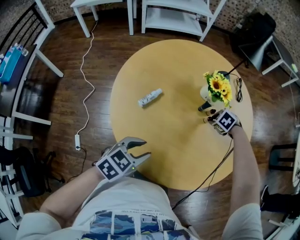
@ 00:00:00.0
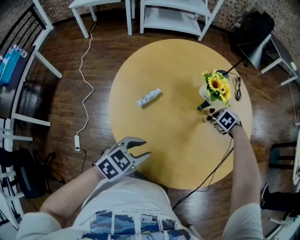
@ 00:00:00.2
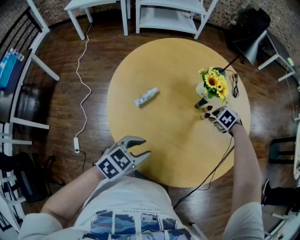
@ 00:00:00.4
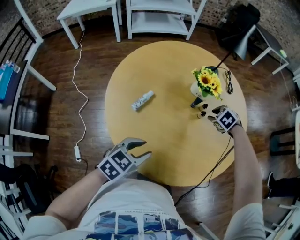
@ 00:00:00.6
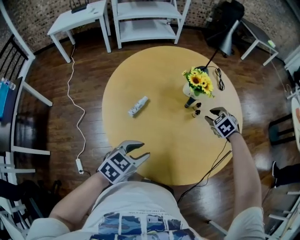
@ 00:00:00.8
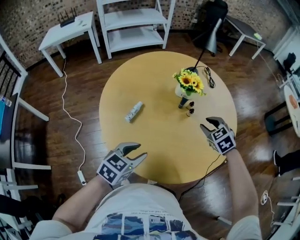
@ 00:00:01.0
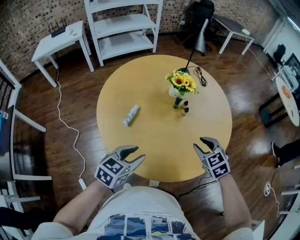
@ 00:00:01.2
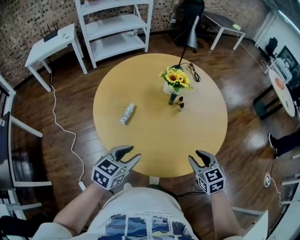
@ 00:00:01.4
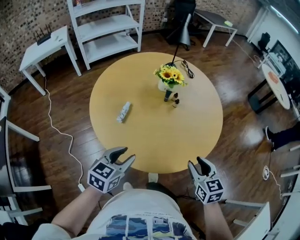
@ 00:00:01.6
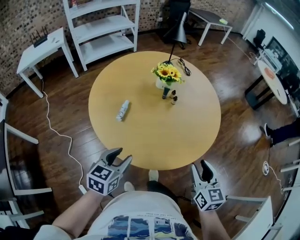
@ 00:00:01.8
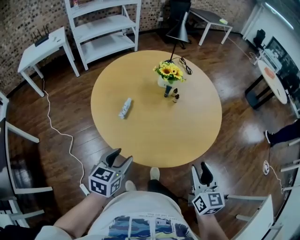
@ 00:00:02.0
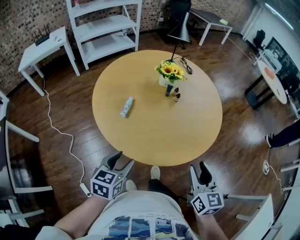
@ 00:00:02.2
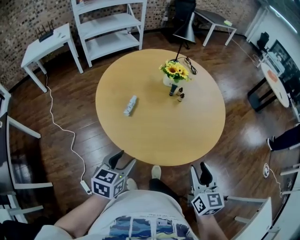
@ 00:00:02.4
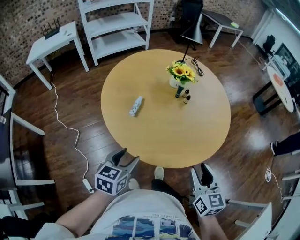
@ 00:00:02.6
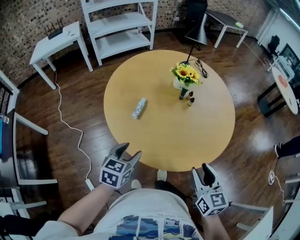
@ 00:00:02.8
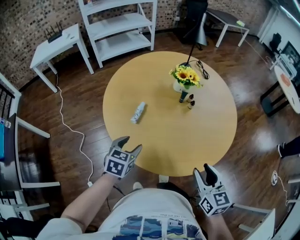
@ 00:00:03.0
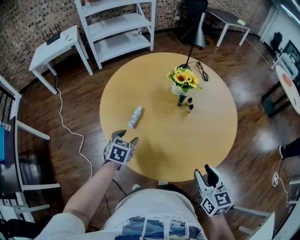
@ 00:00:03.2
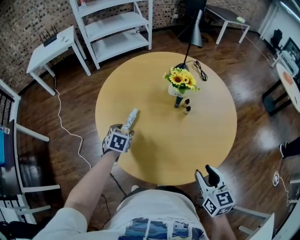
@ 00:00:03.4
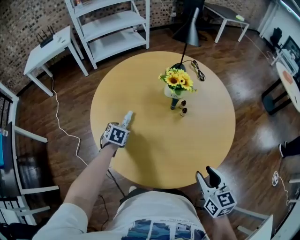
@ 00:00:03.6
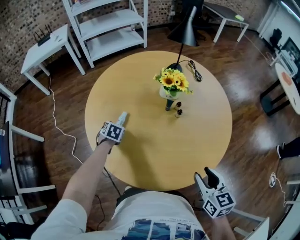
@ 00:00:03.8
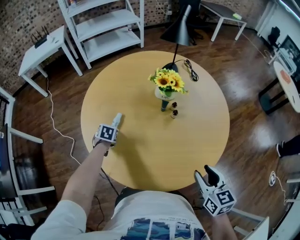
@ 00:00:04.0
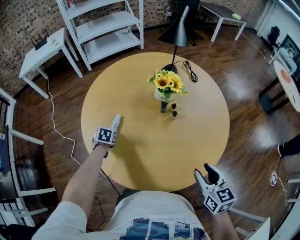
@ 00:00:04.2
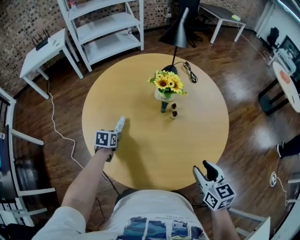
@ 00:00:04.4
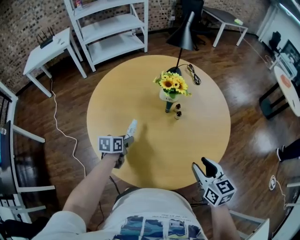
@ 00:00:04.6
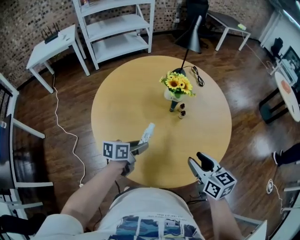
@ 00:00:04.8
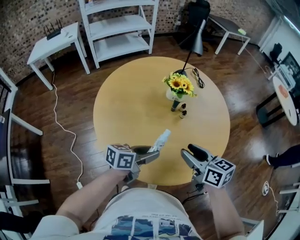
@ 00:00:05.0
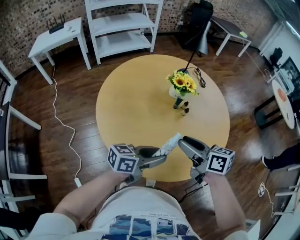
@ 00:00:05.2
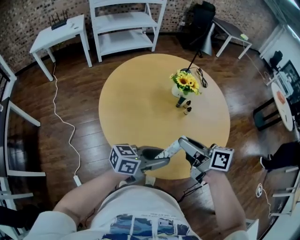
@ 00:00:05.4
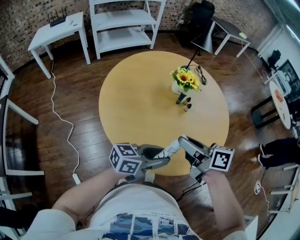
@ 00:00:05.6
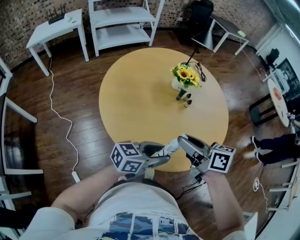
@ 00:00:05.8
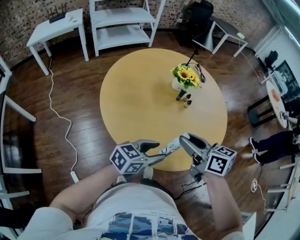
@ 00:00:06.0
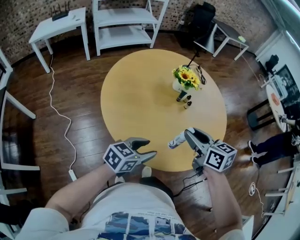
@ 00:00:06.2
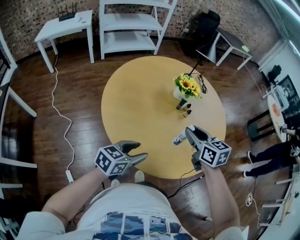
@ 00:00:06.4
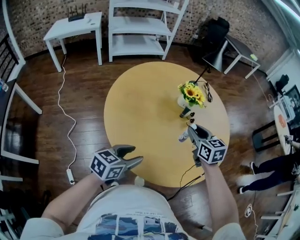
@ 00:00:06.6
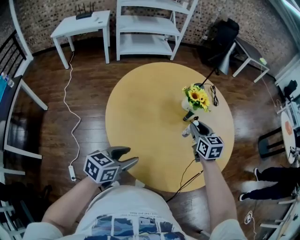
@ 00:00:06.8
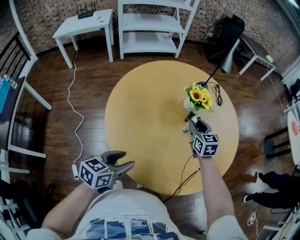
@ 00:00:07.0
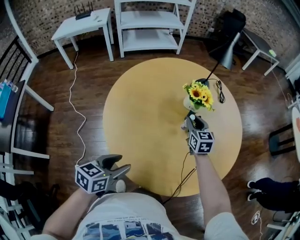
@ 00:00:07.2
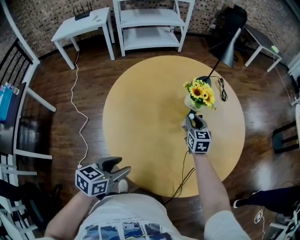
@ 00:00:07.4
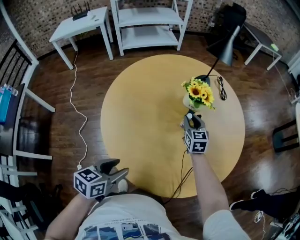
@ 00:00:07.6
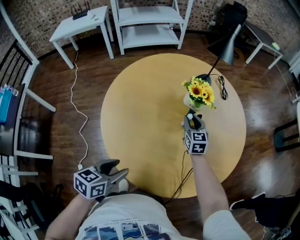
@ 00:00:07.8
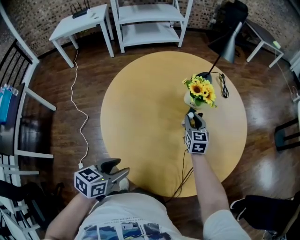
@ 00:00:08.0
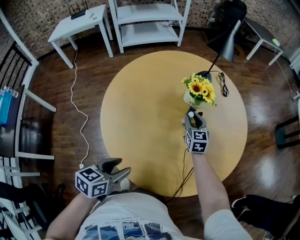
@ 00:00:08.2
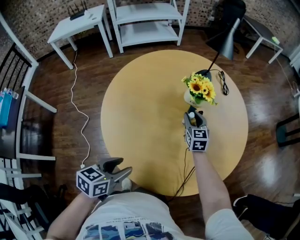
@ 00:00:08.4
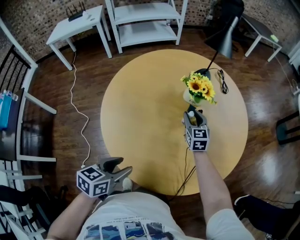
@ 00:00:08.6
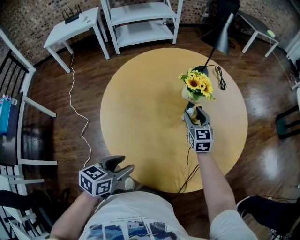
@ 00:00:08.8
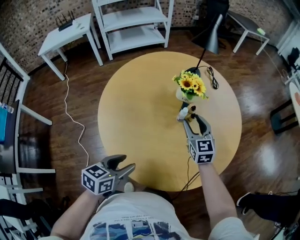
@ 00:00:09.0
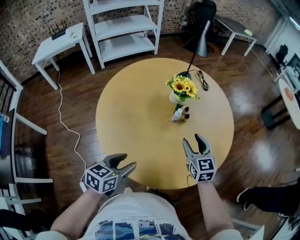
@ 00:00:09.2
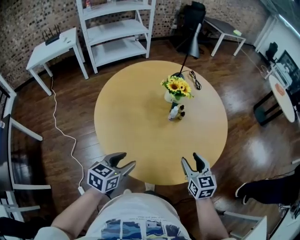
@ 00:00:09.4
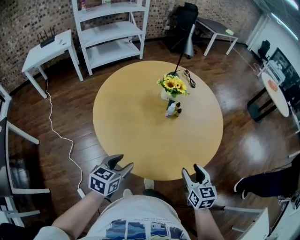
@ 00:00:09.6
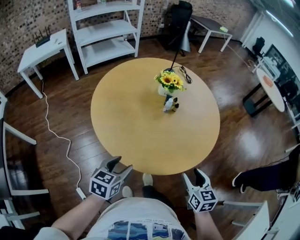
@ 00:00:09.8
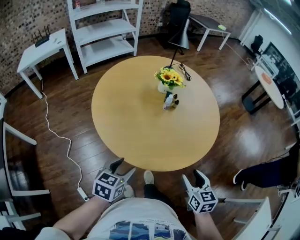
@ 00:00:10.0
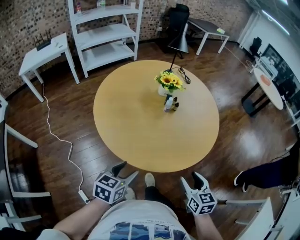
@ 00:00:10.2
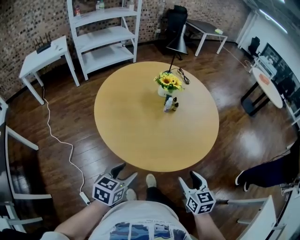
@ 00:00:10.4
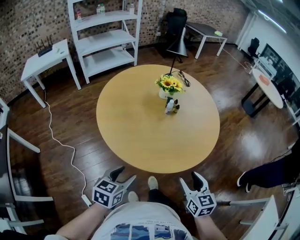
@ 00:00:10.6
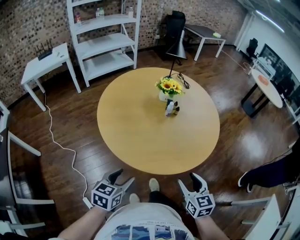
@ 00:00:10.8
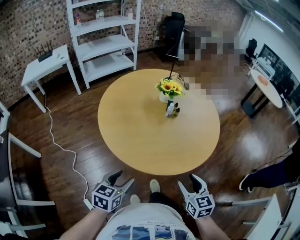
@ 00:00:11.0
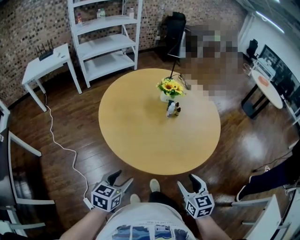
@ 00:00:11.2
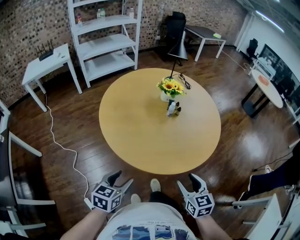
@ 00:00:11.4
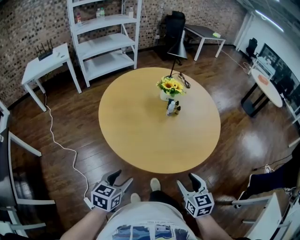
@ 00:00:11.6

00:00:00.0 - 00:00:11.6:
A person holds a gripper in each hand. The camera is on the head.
00:00:00.0 - 00:00:01.4: The left gripper travels upward by about 5 cm. Meanwhile the right gripper ends up some 35 cm from where it was, and points its fingers approximately 40 degrees further upward.
00:00:01.4 - 00:00:02.8: The left gripper goes some 5 cm to the left, while the right gripper goes about 10 cm backward and upward, and turns by about 30 degrees.
00:00:02.8 - 00:00:04.4: The left gripper goes some 30 cm forward and downward, and changes its angle by some 20 degrees; the right gripper moves to the right and forward, about 20 cm.
00:00:04.4 - 00:00:05.8: The left gripper travels backward, upward and to the right by approximately 35 cm, and tips its fingers upward by about 50 degrees, while the right gripper shifts about 25 cm to the left, and rotates some 40 degrees.
00:00:05.8 - 00:00:07.2: The right gripper travels forward and downward by roughly 35 cm, and rotates some 40 degrees. The left gripper is displaced to the left by roughly 10 cm, and swivels approximately 40 degrees.
00:00:07.2 - 00:00:08.8: The right gripper opens.
00:00:08.8 - 00:00:10.2: The right gripper moves backward, about 50 cm, and turns by roughly 30 degrees. The left gripper is displaced backward by some 15 cm.
00:00:10.2 - 00:00:11.6: The right gripper goes roughly 5 cm to the left. The left gripper is displaced to the left and backward by about 5 cm.

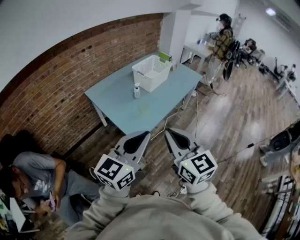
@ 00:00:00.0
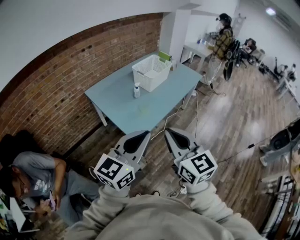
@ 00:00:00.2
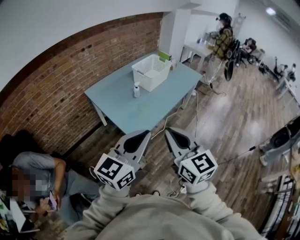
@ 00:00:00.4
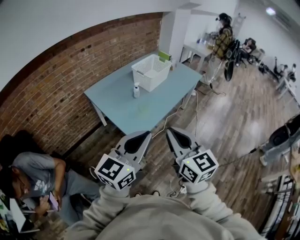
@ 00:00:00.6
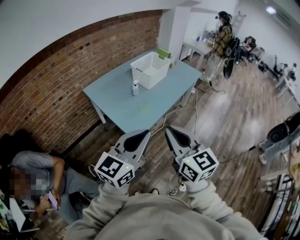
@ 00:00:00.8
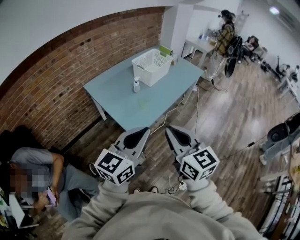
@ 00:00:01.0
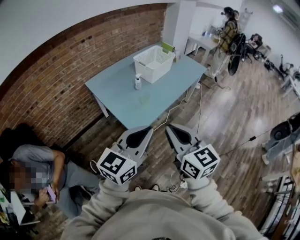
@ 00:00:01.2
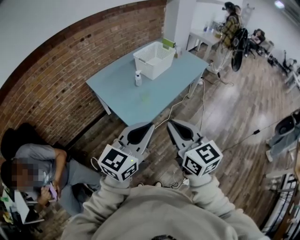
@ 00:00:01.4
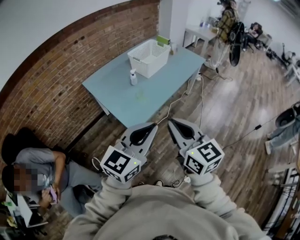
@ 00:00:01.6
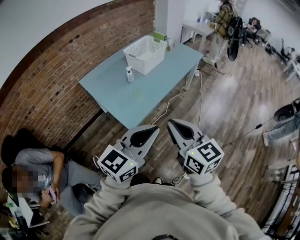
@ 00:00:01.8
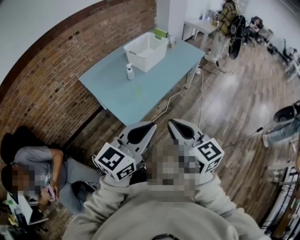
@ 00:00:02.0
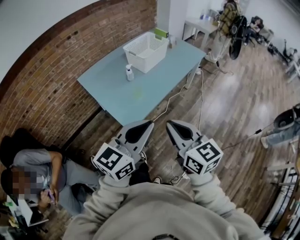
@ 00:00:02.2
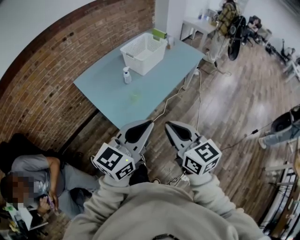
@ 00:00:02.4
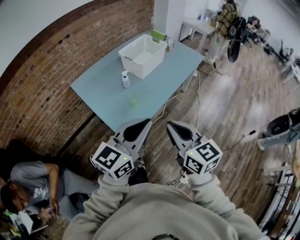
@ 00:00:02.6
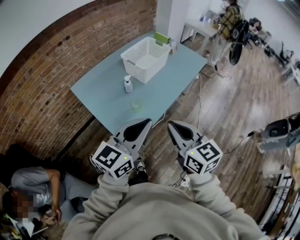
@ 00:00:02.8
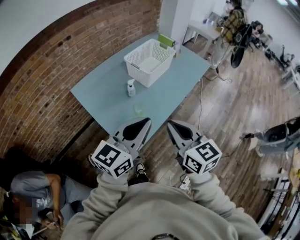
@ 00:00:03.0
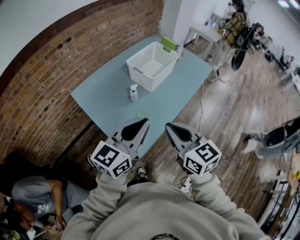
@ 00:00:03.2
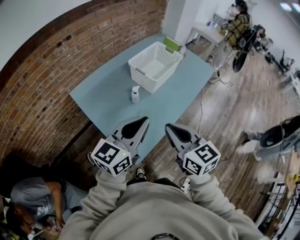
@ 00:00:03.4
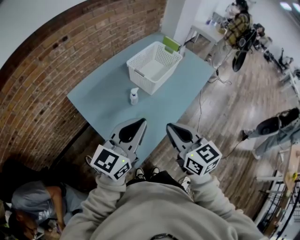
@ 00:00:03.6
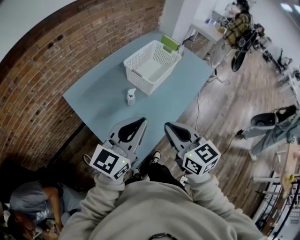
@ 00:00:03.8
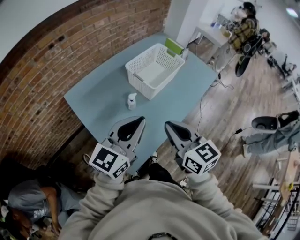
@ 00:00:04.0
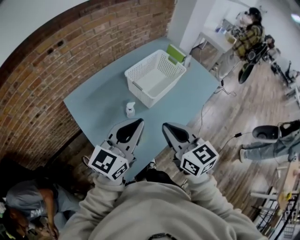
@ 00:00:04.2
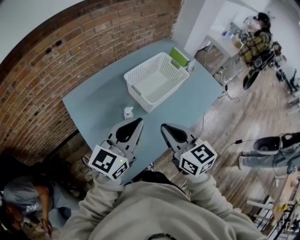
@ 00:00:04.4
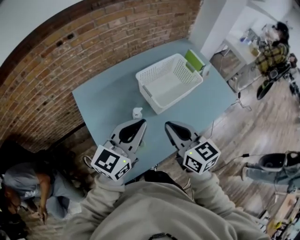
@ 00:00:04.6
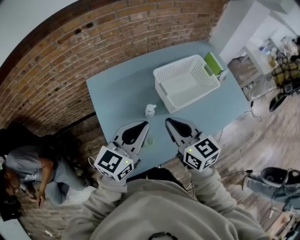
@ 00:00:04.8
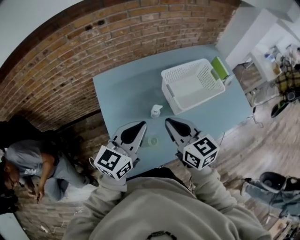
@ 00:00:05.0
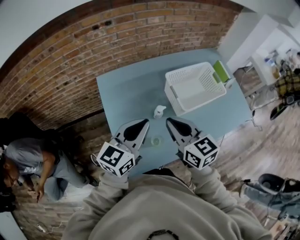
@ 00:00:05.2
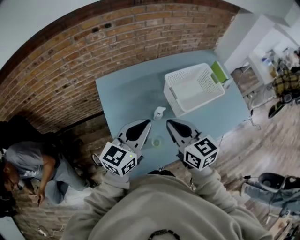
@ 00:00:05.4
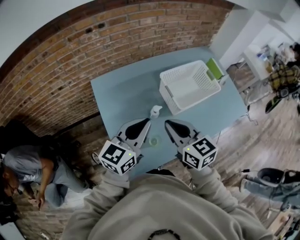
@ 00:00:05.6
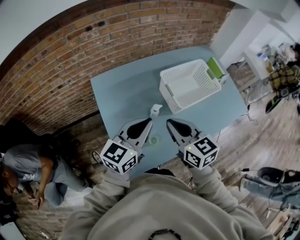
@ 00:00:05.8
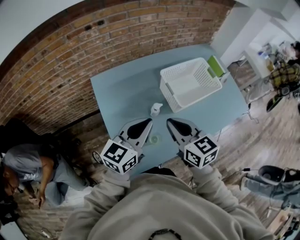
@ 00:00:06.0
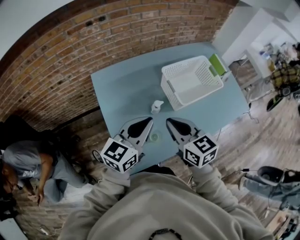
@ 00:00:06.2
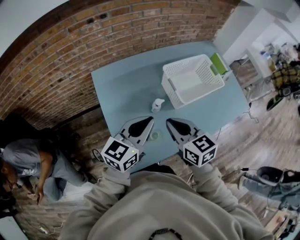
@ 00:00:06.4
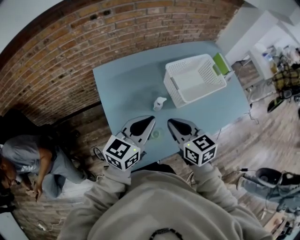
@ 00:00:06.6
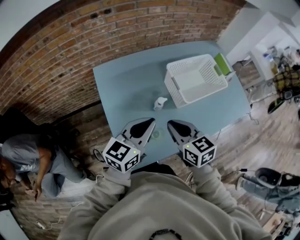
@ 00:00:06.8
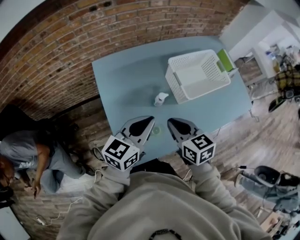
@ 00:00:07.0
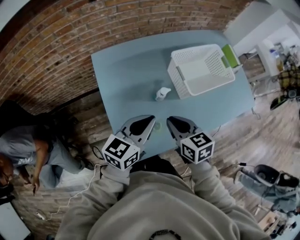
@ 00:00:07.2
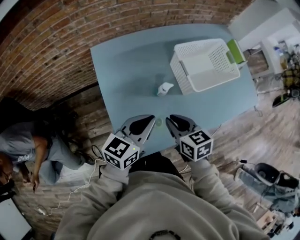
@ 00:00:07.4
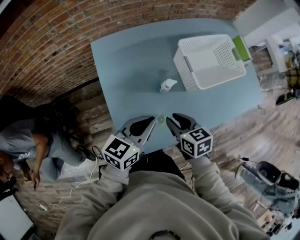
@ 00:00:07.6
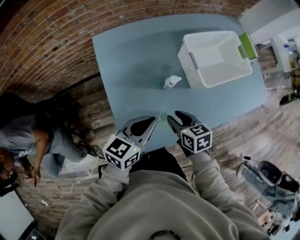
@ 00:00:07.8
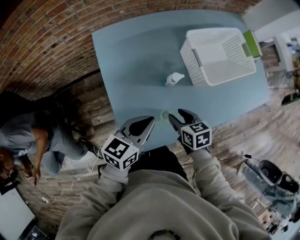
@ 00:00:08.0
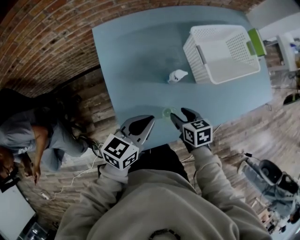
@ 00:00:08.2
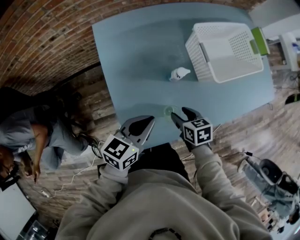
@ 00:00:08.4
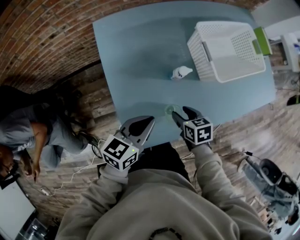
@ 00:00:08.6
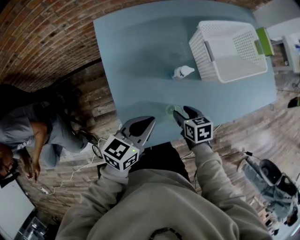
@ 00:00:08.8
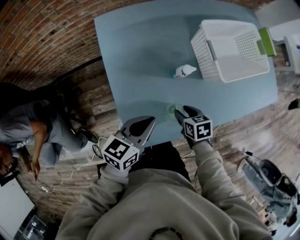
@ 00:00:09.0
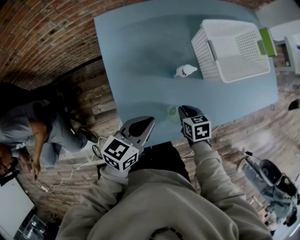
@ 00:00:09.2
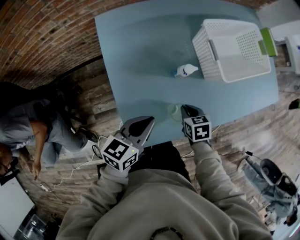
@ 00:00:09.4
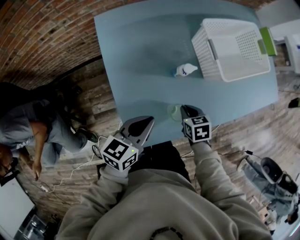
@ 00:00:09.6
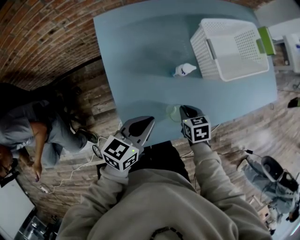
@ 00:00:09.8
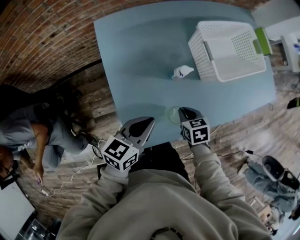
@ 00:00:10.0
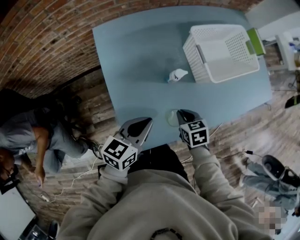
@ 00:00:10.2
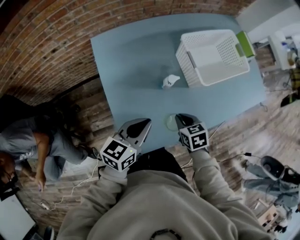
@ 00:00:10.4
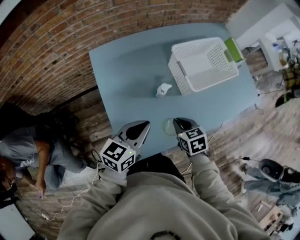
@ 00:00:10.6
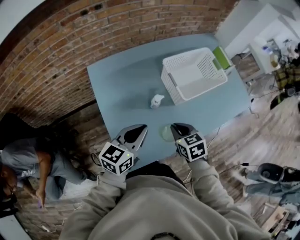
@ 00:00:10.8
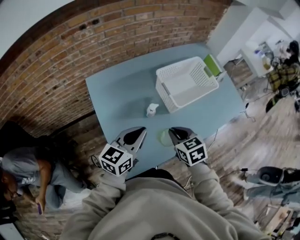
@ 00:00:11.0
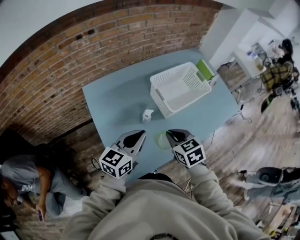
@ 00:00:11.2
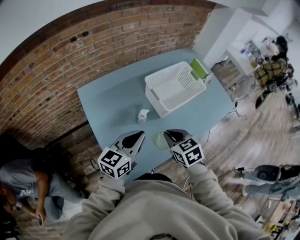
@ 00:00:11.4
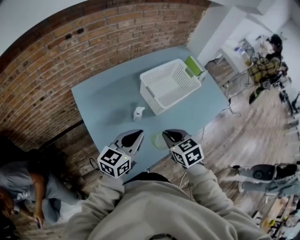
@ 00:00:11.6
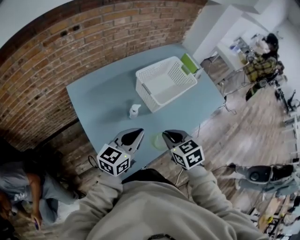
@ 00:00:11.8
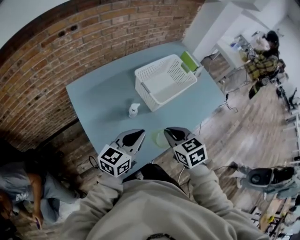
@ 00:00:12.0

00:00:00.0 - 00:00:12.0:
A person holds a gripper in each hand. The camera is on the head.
00:00:00.0 - 00:00:01.6: The grippers both shift to the right by about 5 cm.
00:00:01.6 - 00:00:03.0: Both grippers travel together forward, about 20 cm.
00:00:03.0 - 00:00:04.4: Both grippers travel together forward, about 25 cm.
00:00:04.4 - 00:00:06.0: The right gripper travels to the left by about 10 cm. Meanwhile the left gripper moves to the left and downward, approximately 10 cm.
00:00:06.0 - 00:00:07.6: Both grippers move downward, approximately 15 cm. The right gripper turns by some 20 degrees, and opens its fingers.
00:00:07.6 - 00:00:09.0: The right gripper travels downward by approximately 15 cm, and opens its fingers. The left gripper heads downward, covering roughly 10 cm.
00:00:09.0 - 00:00:10.4: The right gripper travels upward by about 10 cm, and closes its fingers, while the left gripper changes place by roughly 5 cm.
00:00:10.4 - 00:00:12.0: The right gripper is displaced upward by some 20 cm; the left gripper moves upward and to the right, approximately 15 cm.
